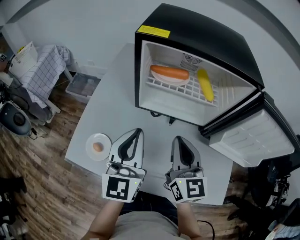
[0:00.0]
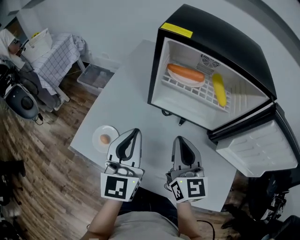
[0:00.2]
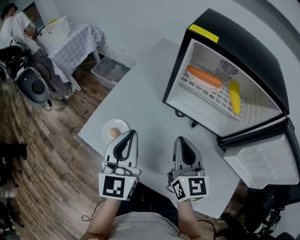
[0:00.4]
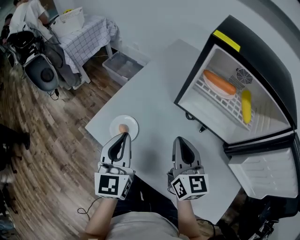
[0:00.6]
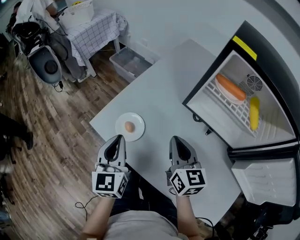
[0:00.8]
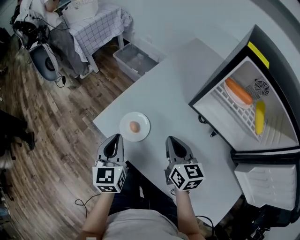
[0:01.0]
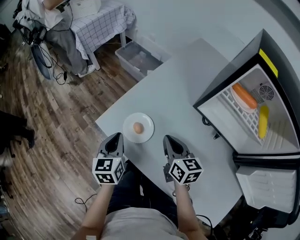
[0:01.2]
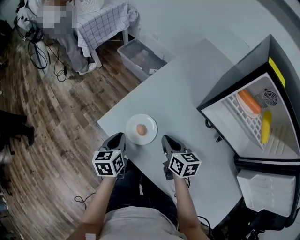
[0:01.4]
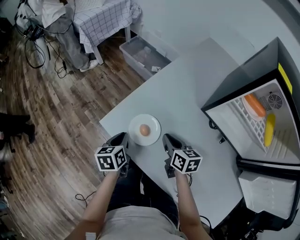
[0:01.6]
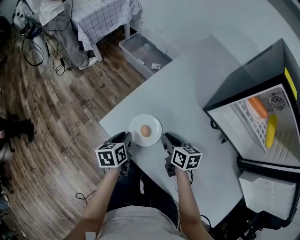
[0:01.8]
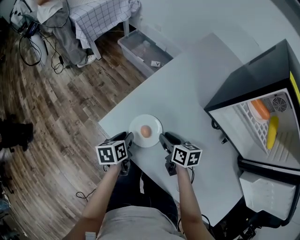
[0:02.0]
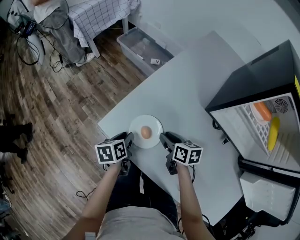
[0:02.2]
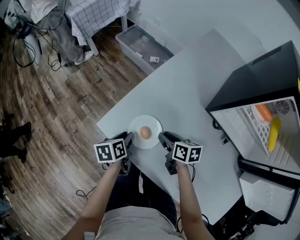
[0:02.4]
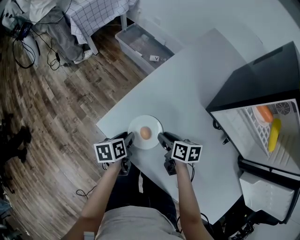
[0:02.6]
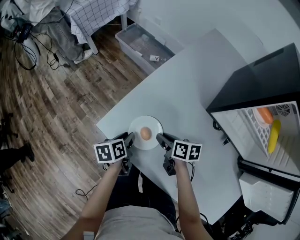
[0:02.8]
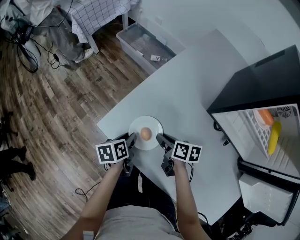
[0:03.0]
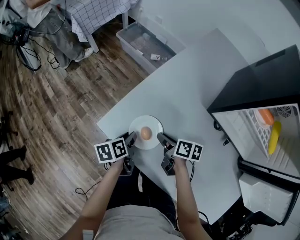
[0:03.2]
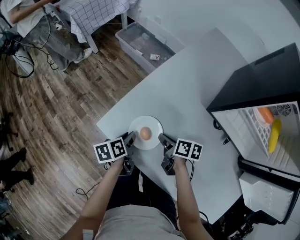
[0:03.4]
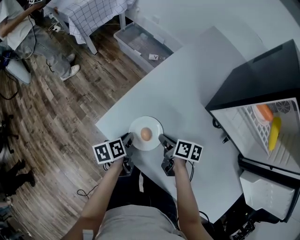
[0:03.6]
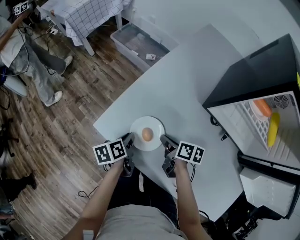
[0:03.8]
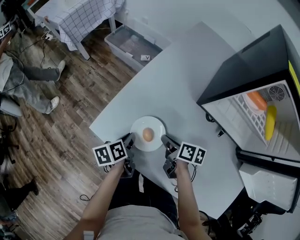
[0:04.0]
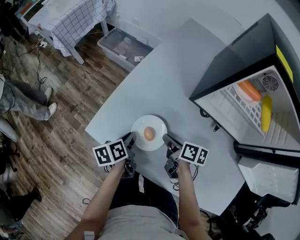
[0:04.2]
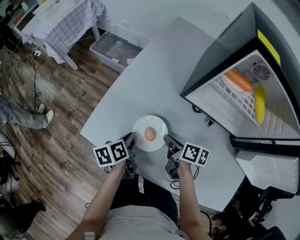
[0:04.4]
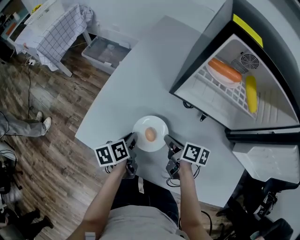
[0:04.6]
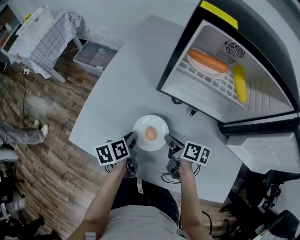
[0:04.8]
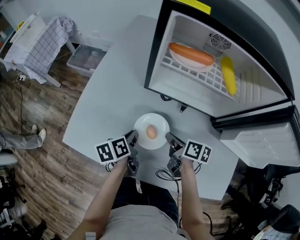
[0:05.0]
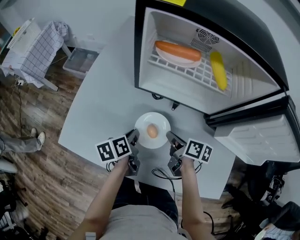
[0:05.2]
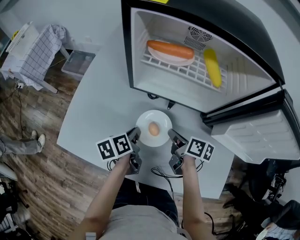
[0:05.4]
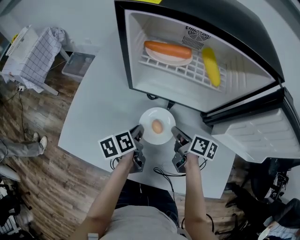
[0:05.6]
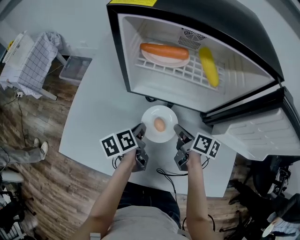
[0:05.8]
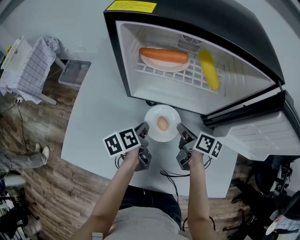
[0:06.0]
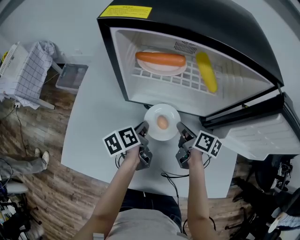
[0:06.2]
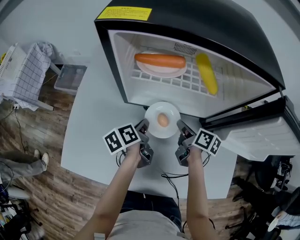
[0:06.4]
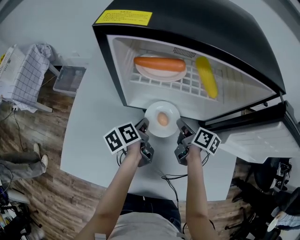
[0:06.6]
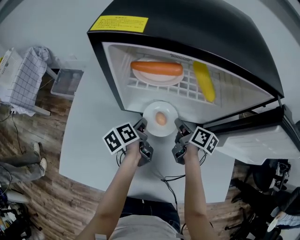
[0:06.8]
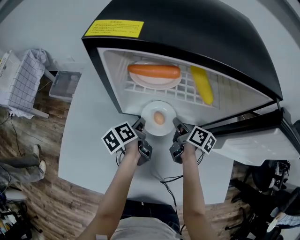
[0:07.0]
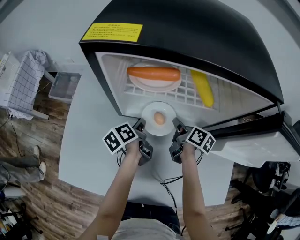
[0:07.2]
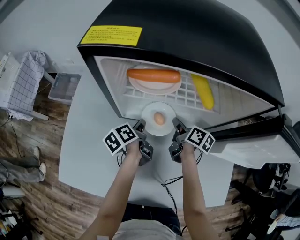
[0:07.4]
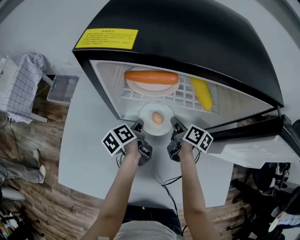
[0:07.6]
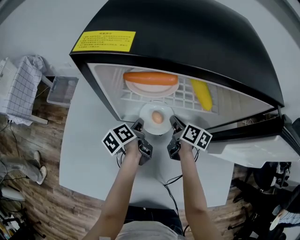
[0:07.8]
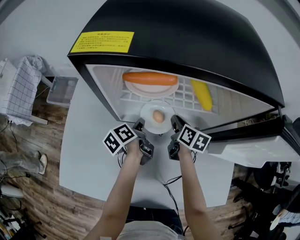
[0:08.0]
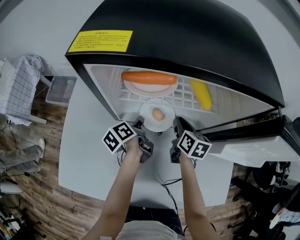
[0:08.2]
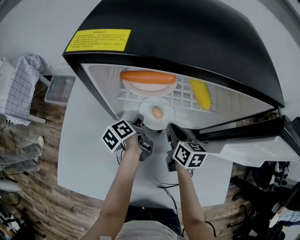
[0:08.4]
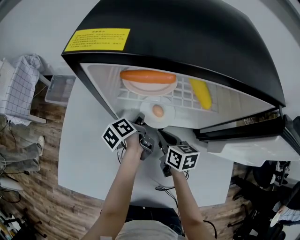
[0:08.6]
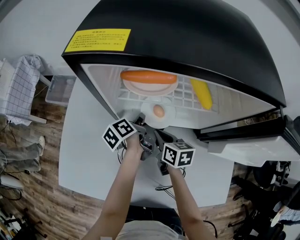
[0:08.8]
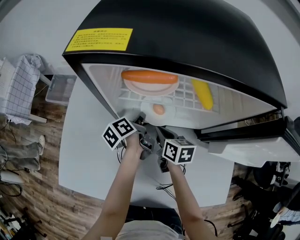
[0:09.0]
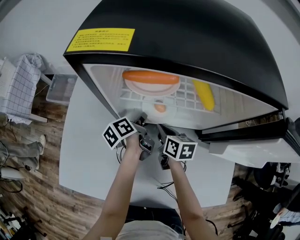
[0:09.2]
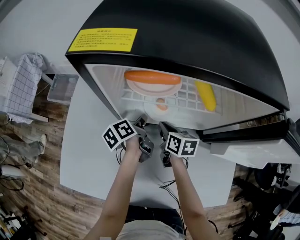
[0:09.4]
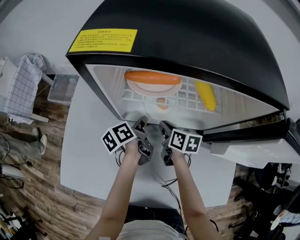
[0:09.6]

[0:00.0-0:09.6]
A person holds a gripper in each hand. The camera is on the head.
0:00.0 to 0:01.6: The right gripper moves some 35 cm, and turns by approximately 60 degrees; the left gripper moves about 40 cm, and tips its fingers downward by roughly 50 degrees.
0:01.6 to 0:03.2: The two grippers go about 5 cm downward. The left gripper rotates some 20 degrees, and opens. Meanwhile the right gripper swivels roughly 30 degrees, and opens its fingers.
0:03.2 to 0:04.8: The left gripper heads to the right, covering about 20 cm. Meanwhile the right gripper shifts roughly 20 cm to the right and backward, and rotates approximately 30 degrees.
0:04.8 to 0:06.4: The two grippers go about 20 cm to the right and forward. The right gripper turns by roughly 20 degrees.
0:06.4 to 0:08.0: The grippers both shift forward by approximately 10 cm. The right gripper turns by roughly 20 degrees.
0:08.0 to 0:09.6: The right gripper moves to the left, some 5 cm.

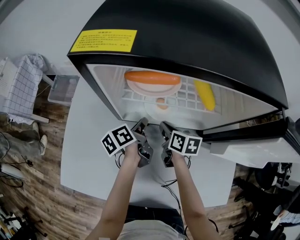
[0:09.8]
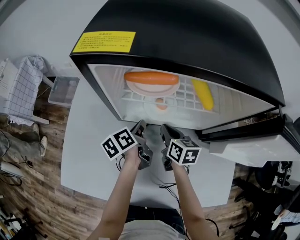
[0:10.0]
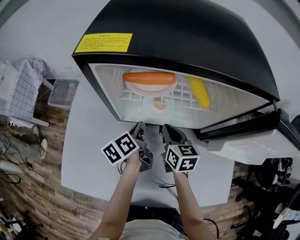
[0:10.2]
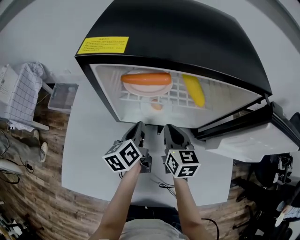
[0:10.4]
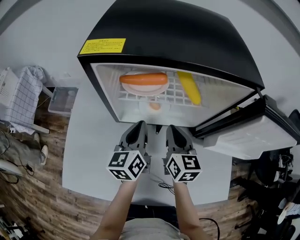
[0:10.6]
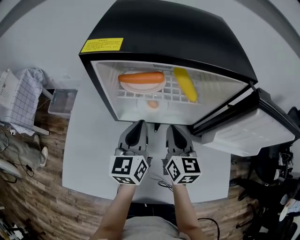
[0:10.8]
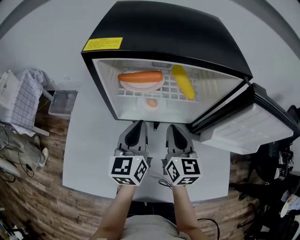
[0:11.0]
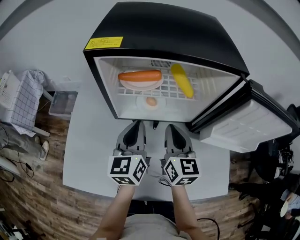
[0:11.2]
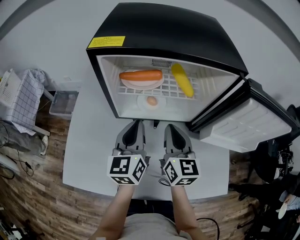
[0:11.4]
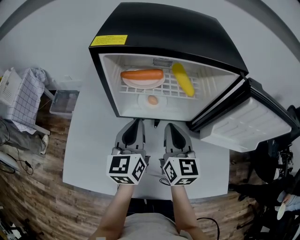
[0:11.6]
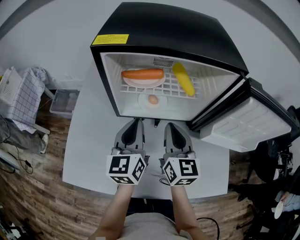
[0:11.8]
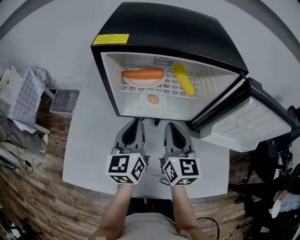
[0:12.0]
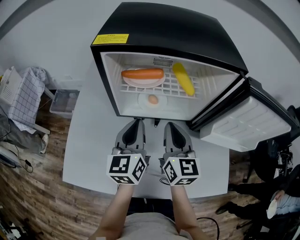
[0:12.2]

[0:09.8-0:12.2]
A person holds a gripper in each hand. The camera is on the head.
0:09.8 to 0:11.0: The two grippers go some 20 cm upward and backward. The left gripper rotates around the line of its fingers by some 50 degrees, clockwise from behind. The right gripper changes its angle by some 40 degrees.
0:11.0 to 0:12.2: There are only small adjustments of the grippers.

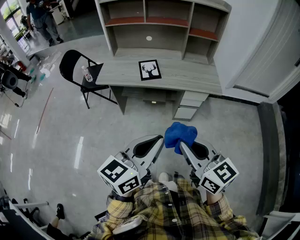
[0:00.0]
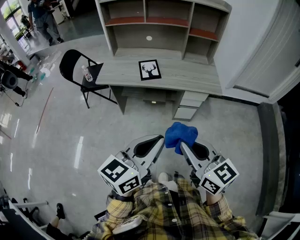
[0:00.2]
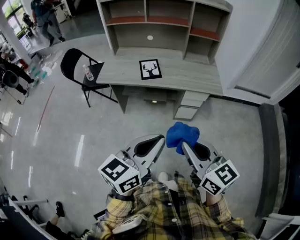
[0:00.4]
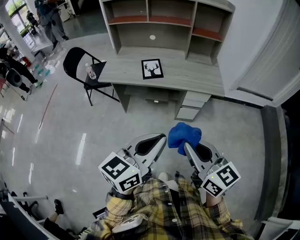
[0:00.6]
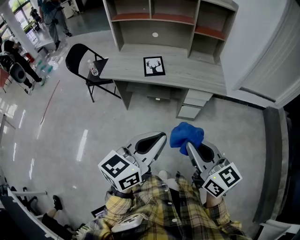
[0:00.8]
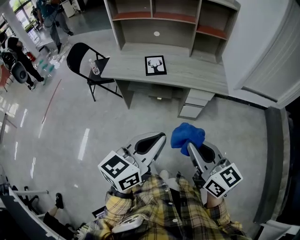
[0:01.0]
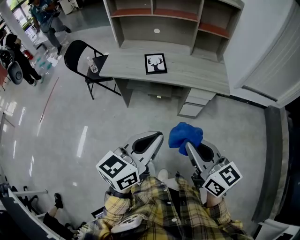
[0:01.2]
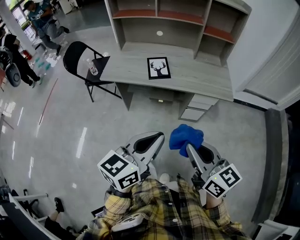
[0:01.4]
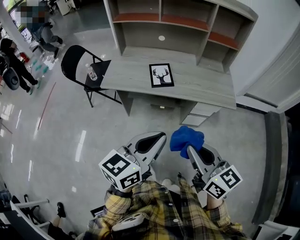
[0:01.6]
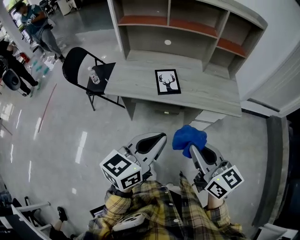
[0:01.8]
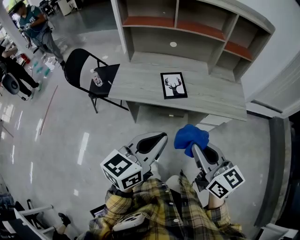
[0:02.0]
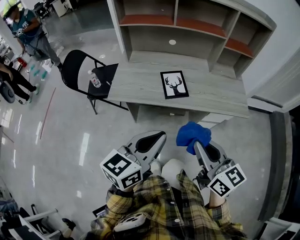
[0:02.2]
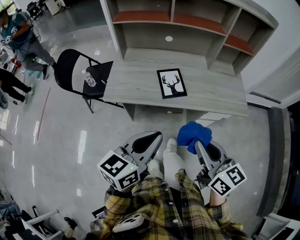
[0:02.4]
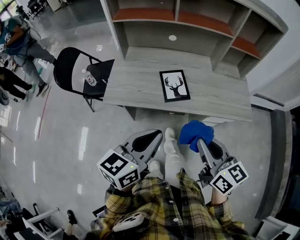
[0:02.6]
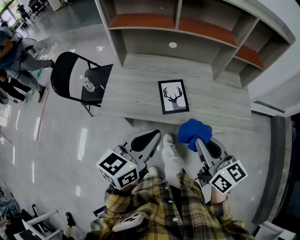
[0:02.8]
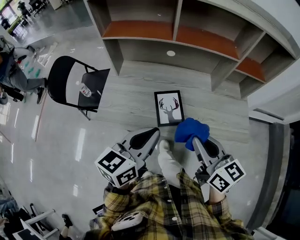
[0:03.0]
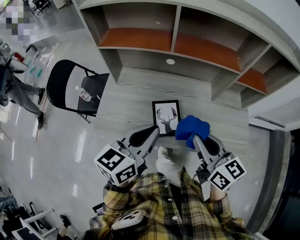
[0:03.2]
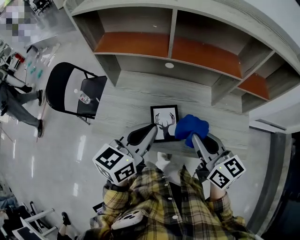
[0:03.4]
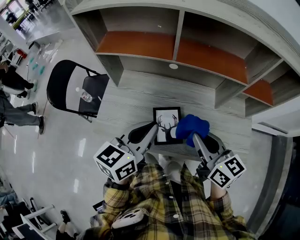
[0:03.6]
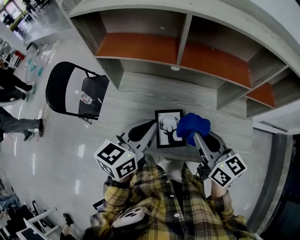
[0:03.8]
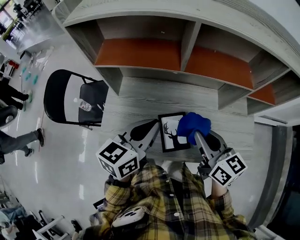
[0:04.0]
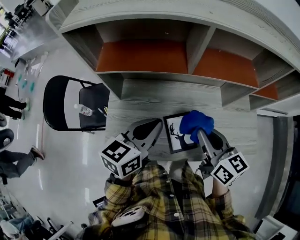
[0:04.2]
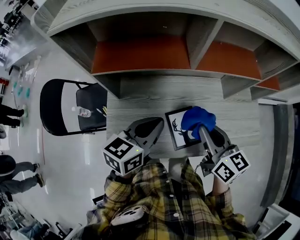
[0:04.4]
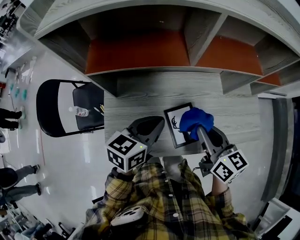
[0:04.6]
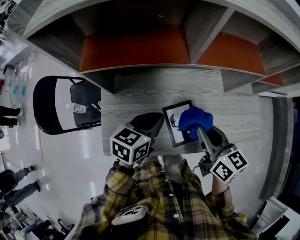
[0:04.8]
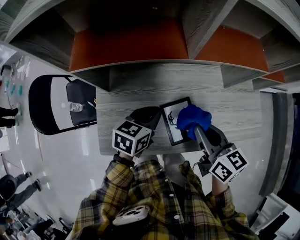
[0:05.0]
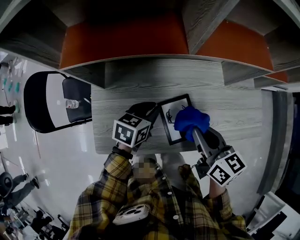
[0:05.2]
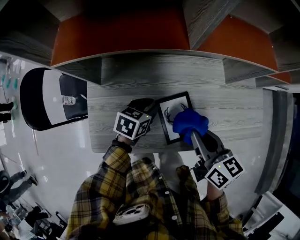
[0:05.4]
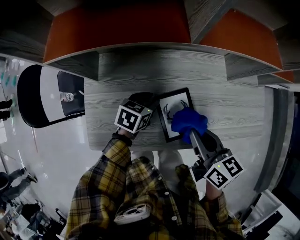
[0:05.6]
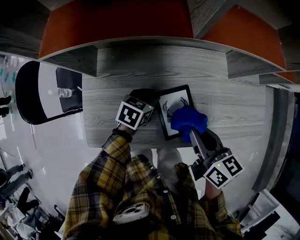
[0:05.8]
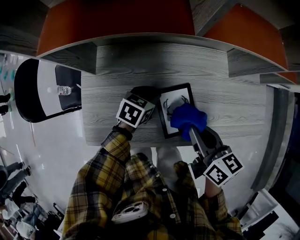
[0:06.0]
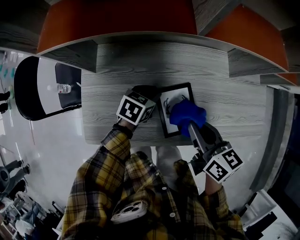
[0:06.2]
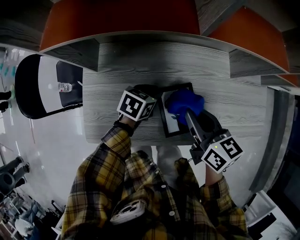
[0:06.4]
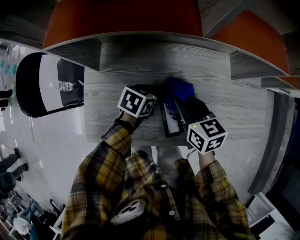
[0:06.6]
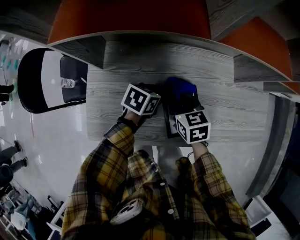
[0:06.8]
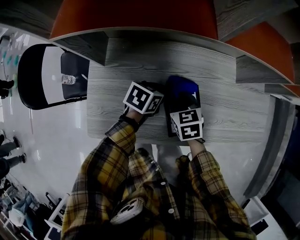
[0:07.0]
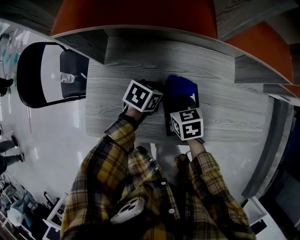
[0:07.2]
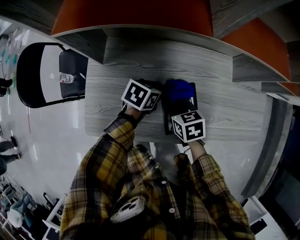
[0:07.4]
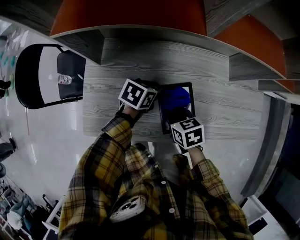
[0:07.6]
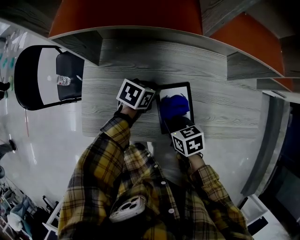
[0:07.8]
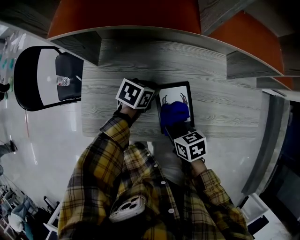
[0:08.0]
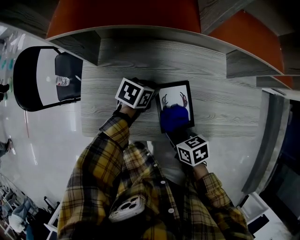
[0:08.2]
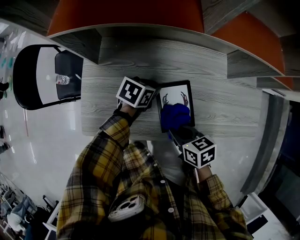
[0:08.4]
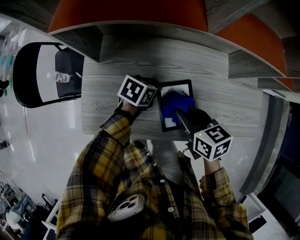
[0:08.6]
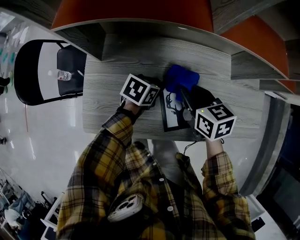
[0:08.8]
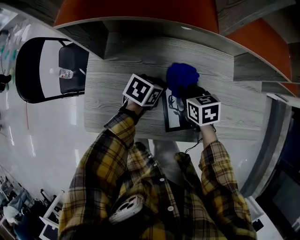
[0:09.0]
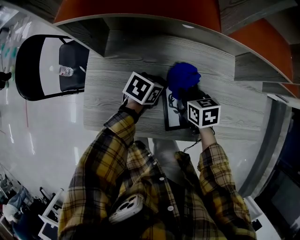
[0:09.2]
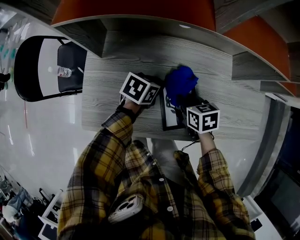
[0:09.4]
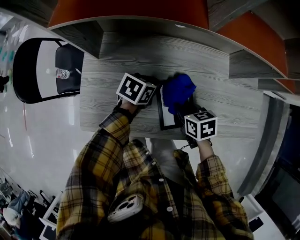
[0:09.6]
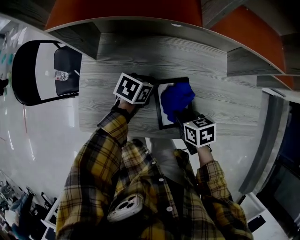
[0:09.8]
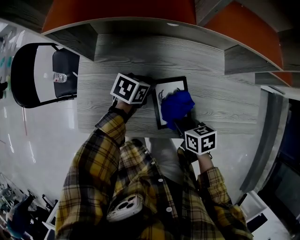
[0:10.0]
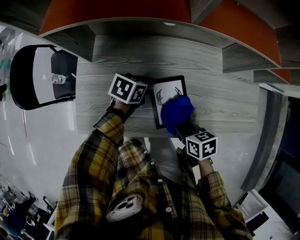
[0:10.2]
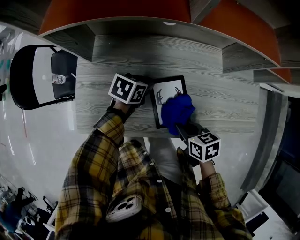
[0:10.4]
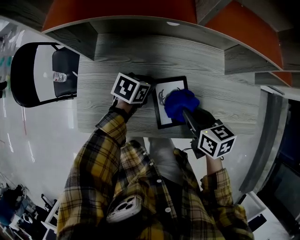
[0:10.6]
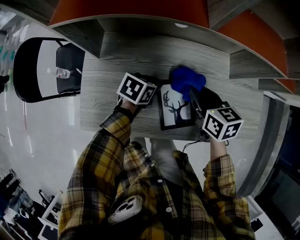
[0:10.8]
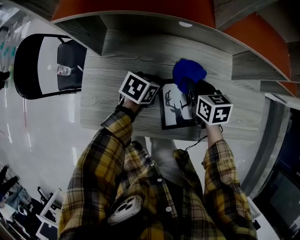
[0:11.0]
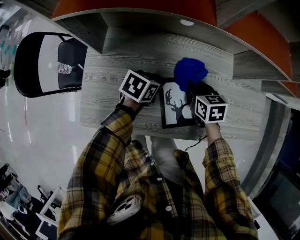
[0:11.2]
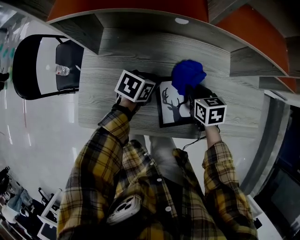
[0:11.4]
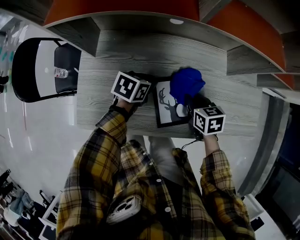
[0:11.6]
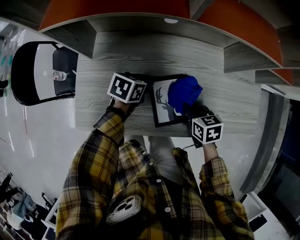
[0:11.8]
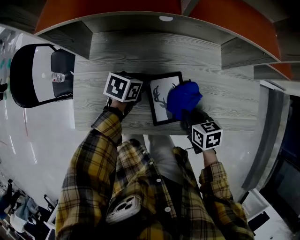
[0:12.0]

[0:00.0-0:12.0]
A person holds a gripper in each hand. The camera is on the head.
0:00.0 to 0:01.6: Both grippers move forward, some 10 cm.
0:01.6 to 0:03.0: The grippers both shift forward by approximately 30 cm.
0:03.0 to 0:04.4: The grippers both shift forward by roughly 20 cm.
0:04.4 to 0:06.0: The left gripper is displaced downward by roughly 25 cm, rotates about 30 degrees, and opens up, while the right gripper heads downward, covering roughly 10 cm.
0:06.0 to 0:07.6: The right gripper heads downward and to the left, covering roughly 15 cm, and turns by roughly 30 degrees.
0:07.6 to 0:09.0: The right gripper goes upward and returns, some 10 cm each way.
0:09.0 to 0:10.4: The right gripper goes roughly 15 cm backward and to the right.
0:10.4 to 0:12.0: The right gripper moves approximately 15 cm forward and comes back.
